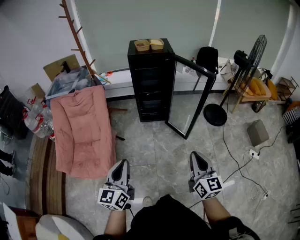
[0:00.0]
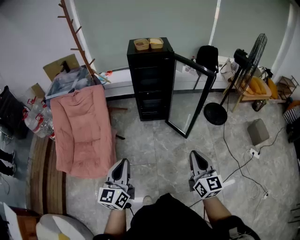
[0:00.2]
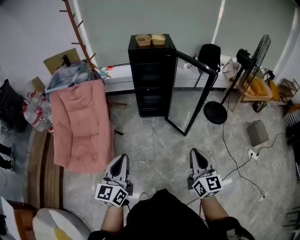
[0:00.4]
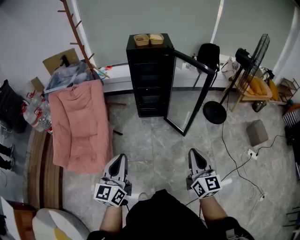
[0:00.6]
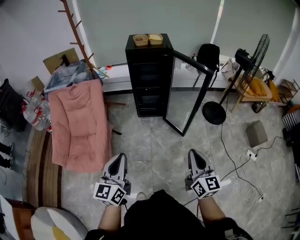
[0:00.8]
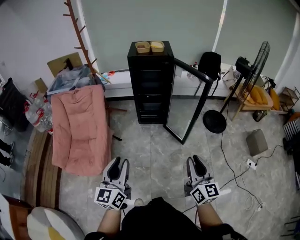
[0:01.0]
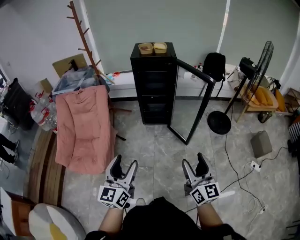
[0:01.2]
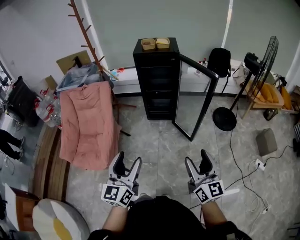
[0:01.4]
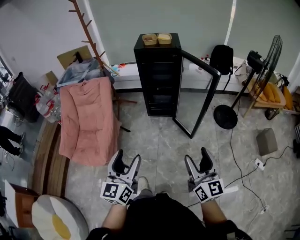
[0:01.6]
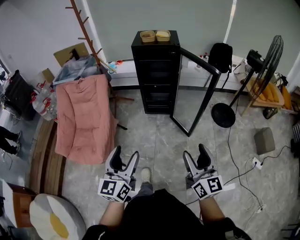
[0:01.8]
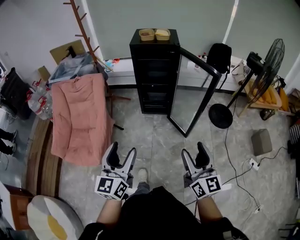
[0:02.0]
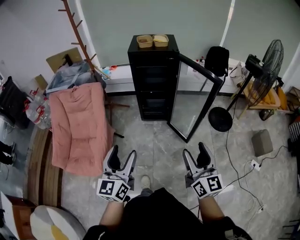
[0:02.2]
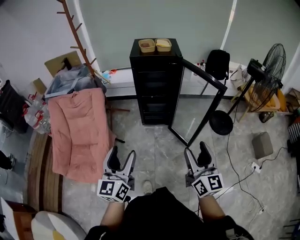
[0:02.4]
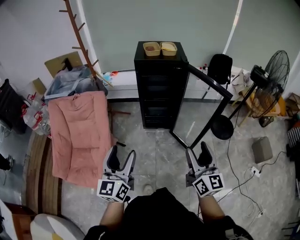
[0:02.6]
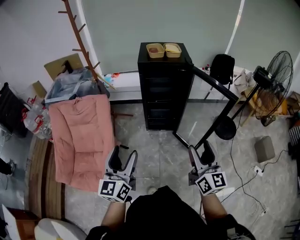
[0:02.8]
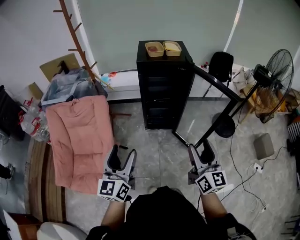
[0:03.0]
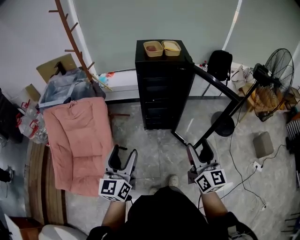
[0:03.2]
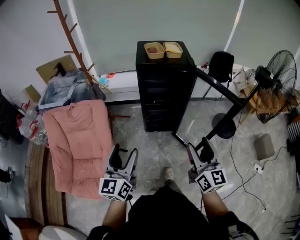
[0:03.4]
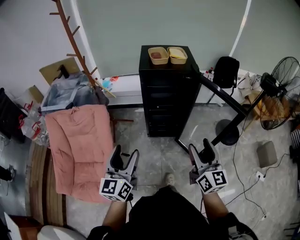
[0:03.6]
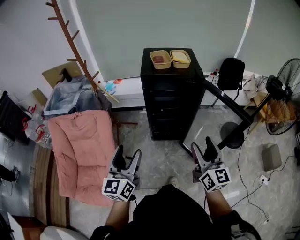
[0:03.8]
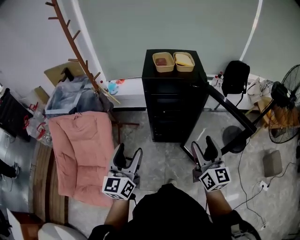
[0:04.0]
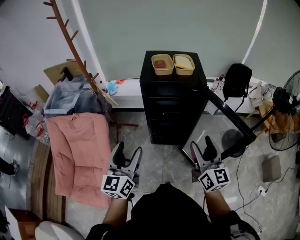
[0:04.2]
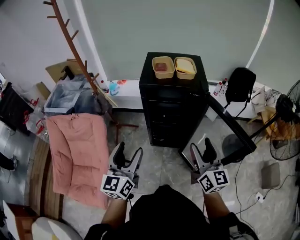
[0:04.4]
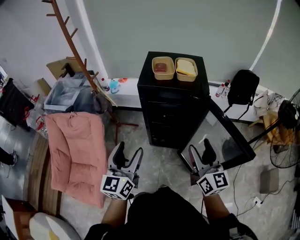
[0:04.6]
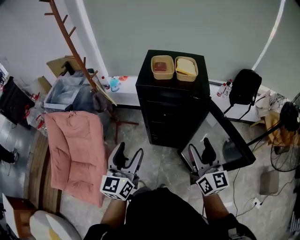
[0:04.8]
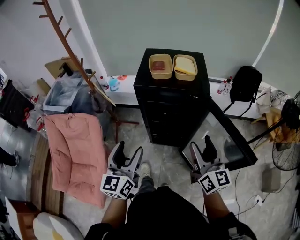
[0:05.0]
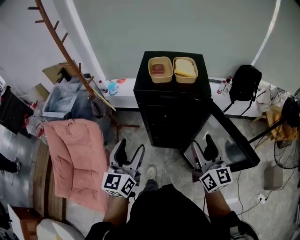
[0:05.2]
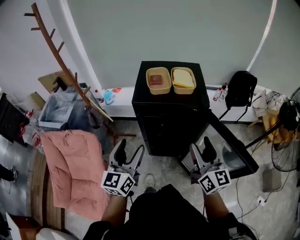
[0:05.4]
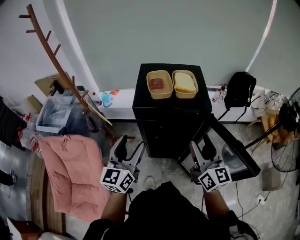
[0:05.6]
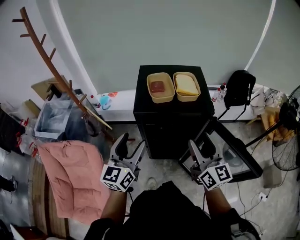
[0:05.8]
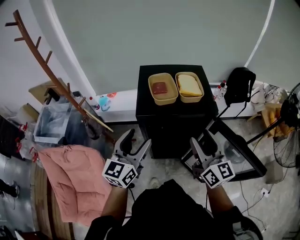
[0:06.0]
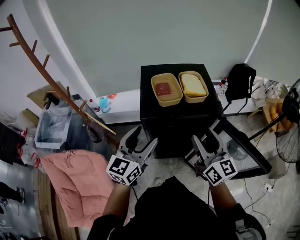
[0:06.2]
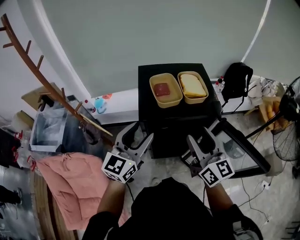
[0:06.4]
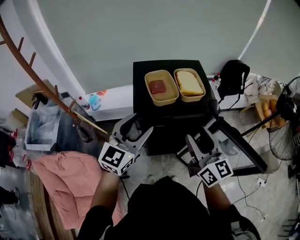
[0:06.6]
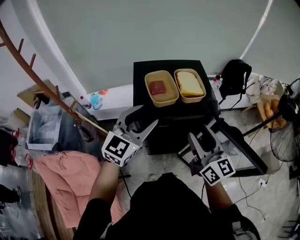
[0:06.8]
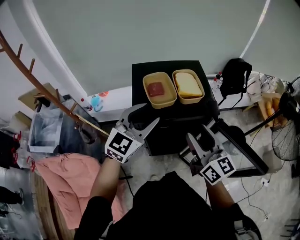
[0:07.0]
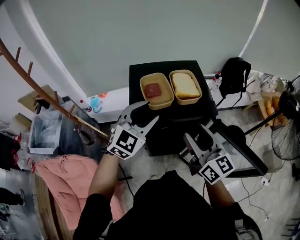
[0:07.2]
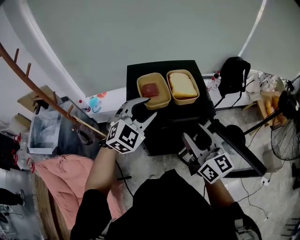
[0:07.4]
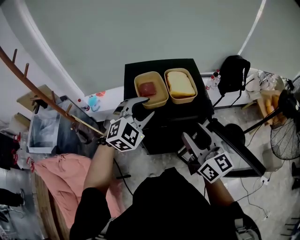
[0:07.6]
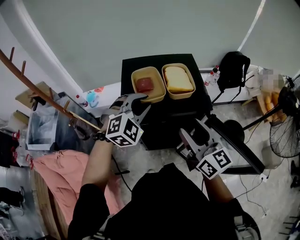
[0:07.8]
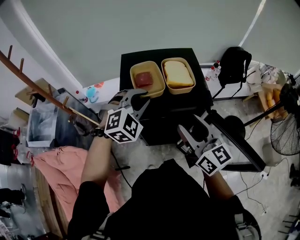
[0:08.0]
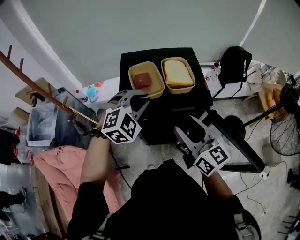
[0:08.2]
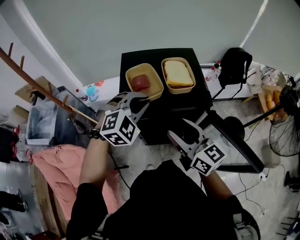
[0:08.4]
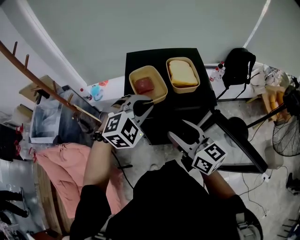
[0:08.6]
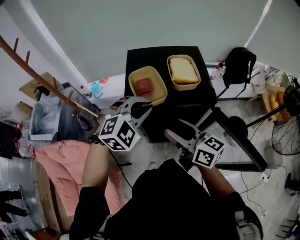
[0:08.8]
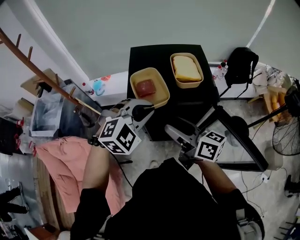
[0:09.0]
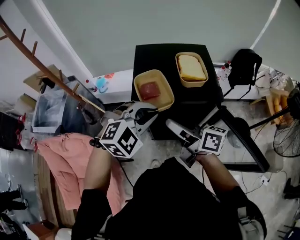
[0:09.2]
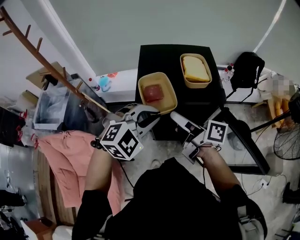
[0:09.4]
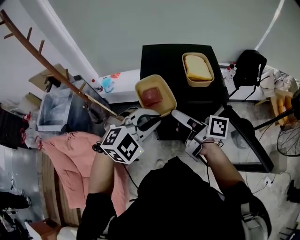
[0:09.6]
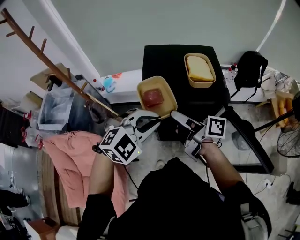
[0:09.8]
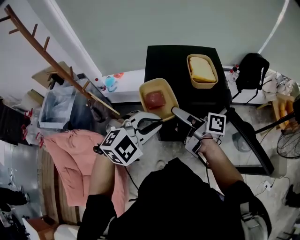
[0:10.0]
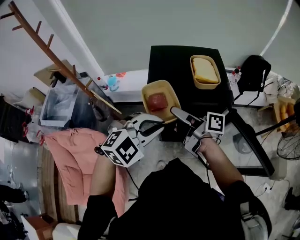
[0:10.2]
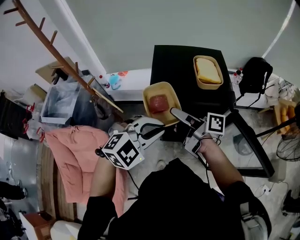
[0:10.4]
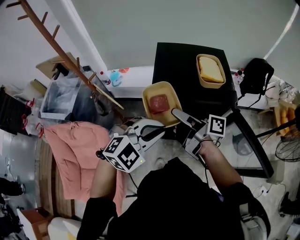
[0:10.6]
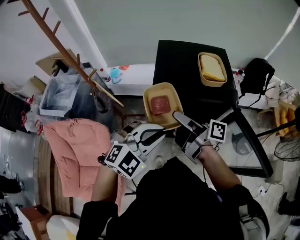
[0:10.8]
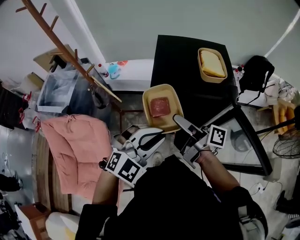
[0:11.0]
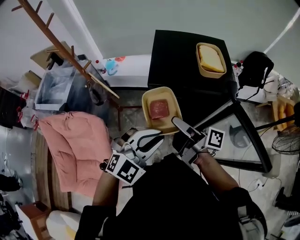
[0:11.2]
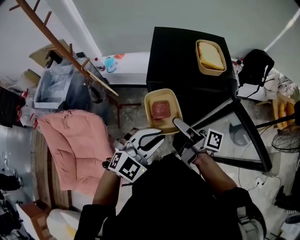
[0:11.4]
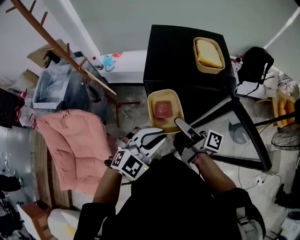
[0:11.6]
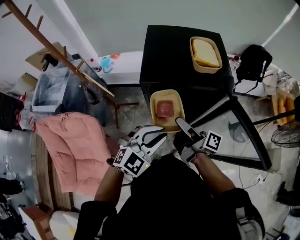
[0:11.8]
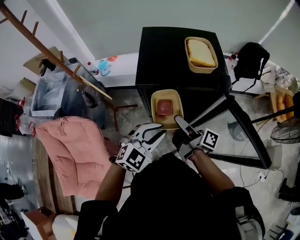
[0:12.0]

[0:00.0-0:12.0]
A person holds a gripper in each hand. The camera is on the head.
0:00.0 to 0:01.6: Both grippers move to the right, roughly 10 cm. The left gripper opens its fingers. The right gripper opens.
0:01.6 to 0:03.0: Both grippers travel together forward and to the left, approximately 25 cm.
0:03.0 to 0:04.4: Both grippers move forward, about 20 cm.
0:04.4 to 0:06.0: The grippers both shift forward by some 20 cm.
0:06.0 to 0:07.6: The left gripper moves forward and to the right, approximately 15 cm, rolls clockwise, seen from behind, by approximately 50 degrees, and closes up.
0:07.6 to 0:09.0: The left gripper is displaced backward by approximately 10 cm, and closes up. Meanwhile the right gripper travels to the left by approximately 10 cm, and turns by roughly 30 degrees.
0:09.0 to 0:10.4: The right gripper goes roughly 5 cm to the left, and swivels approximately 40 degrees, while the left gripper moves backward, some 10 cm.
0:10.4 to 0:12.0: The left gripper is displaced downward by some 10 cm; the right gripper goes some 10 cm downward and to the right.

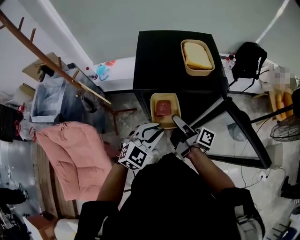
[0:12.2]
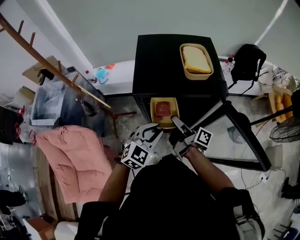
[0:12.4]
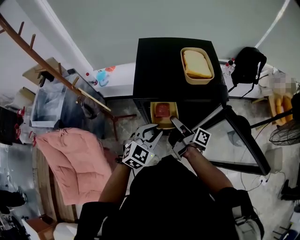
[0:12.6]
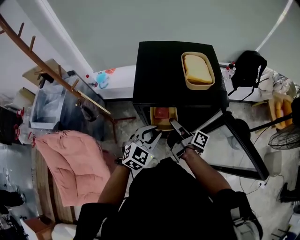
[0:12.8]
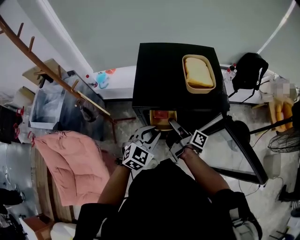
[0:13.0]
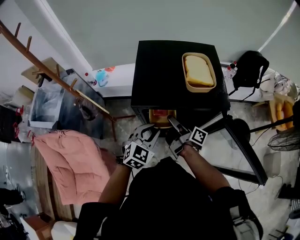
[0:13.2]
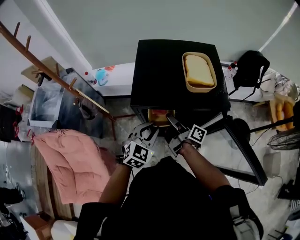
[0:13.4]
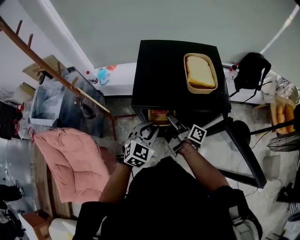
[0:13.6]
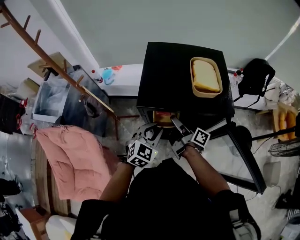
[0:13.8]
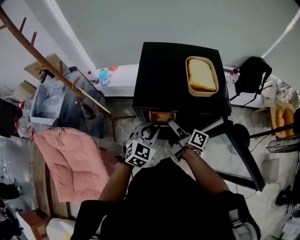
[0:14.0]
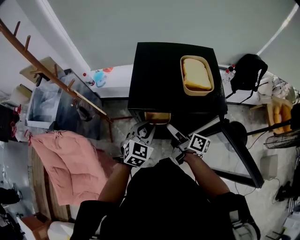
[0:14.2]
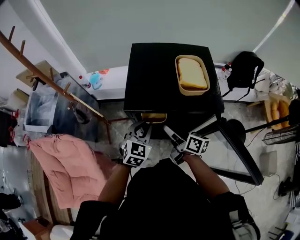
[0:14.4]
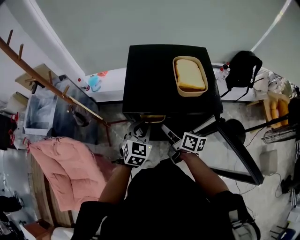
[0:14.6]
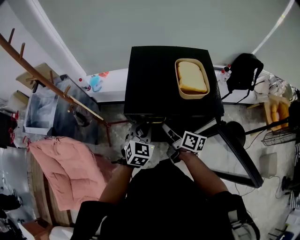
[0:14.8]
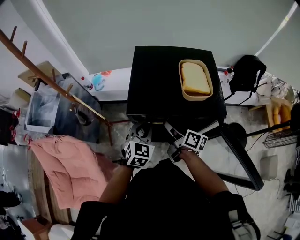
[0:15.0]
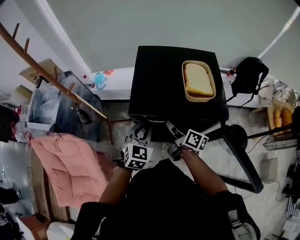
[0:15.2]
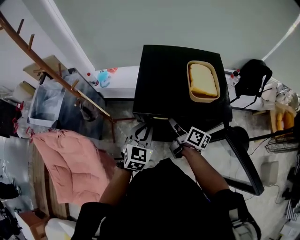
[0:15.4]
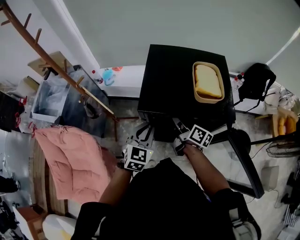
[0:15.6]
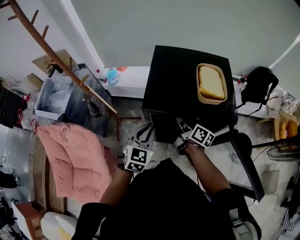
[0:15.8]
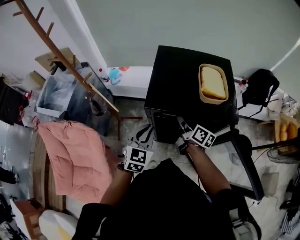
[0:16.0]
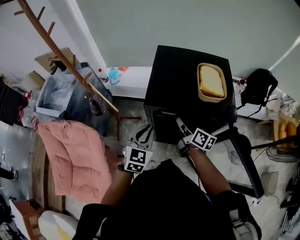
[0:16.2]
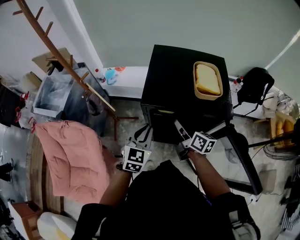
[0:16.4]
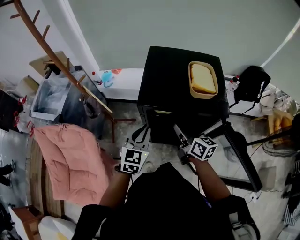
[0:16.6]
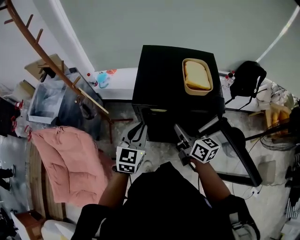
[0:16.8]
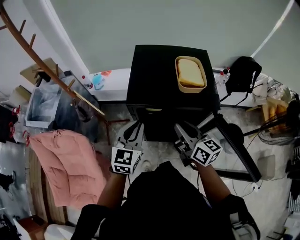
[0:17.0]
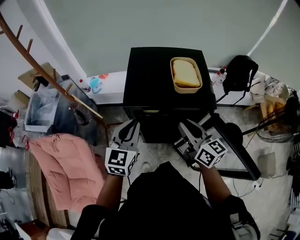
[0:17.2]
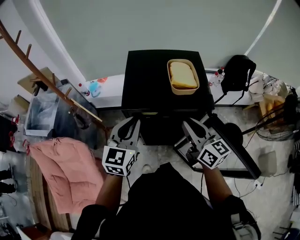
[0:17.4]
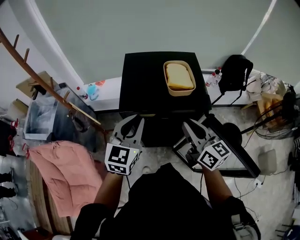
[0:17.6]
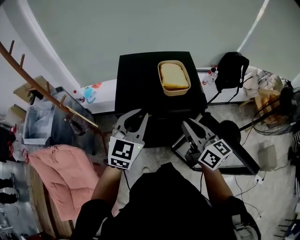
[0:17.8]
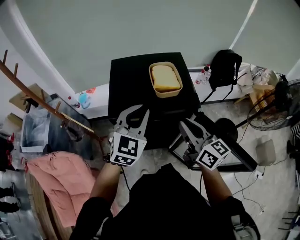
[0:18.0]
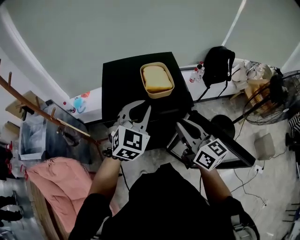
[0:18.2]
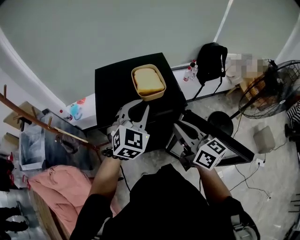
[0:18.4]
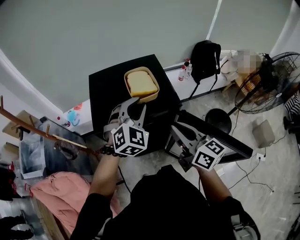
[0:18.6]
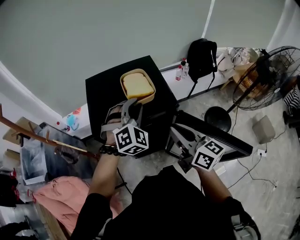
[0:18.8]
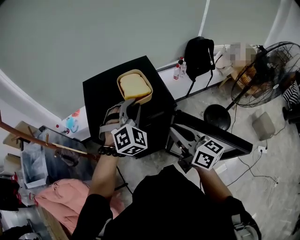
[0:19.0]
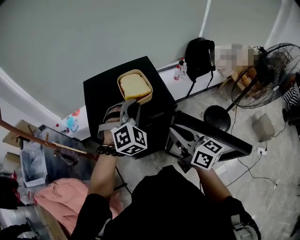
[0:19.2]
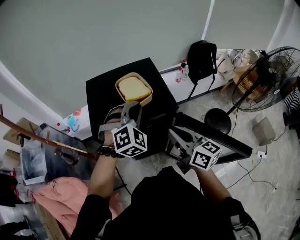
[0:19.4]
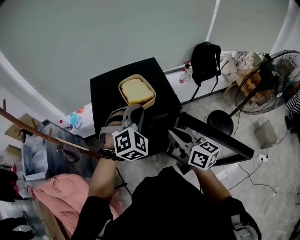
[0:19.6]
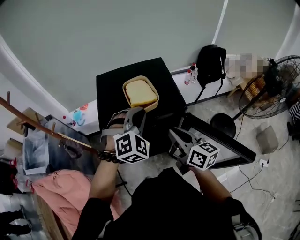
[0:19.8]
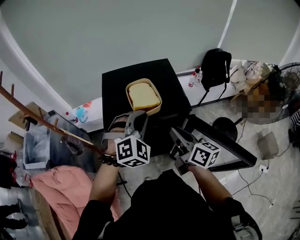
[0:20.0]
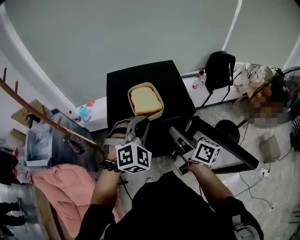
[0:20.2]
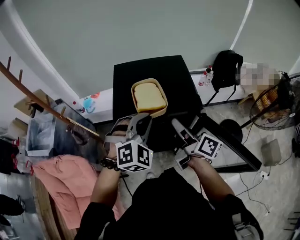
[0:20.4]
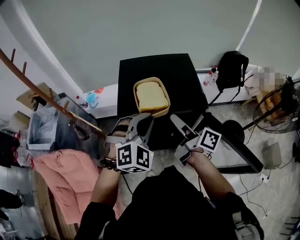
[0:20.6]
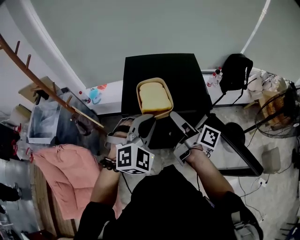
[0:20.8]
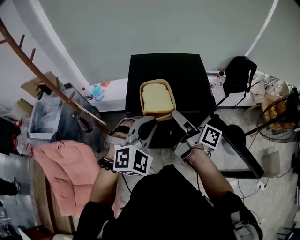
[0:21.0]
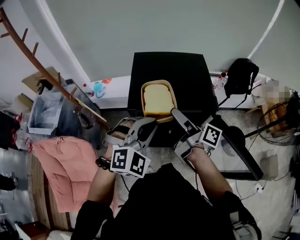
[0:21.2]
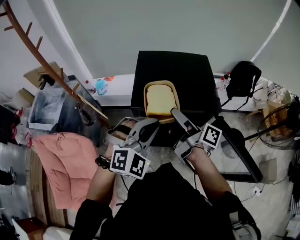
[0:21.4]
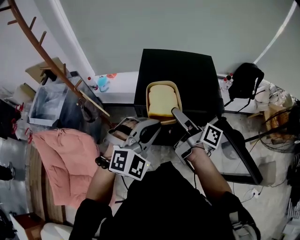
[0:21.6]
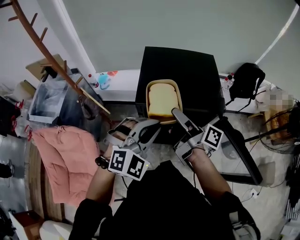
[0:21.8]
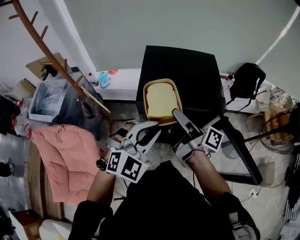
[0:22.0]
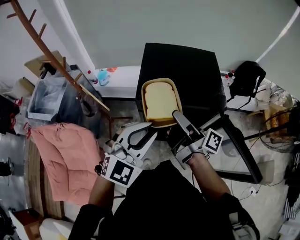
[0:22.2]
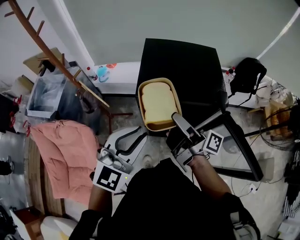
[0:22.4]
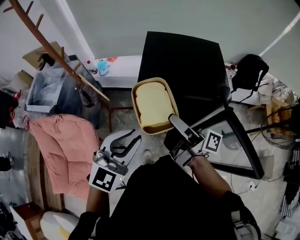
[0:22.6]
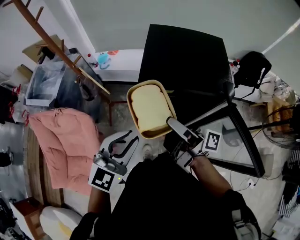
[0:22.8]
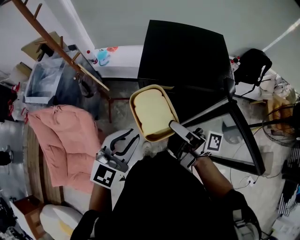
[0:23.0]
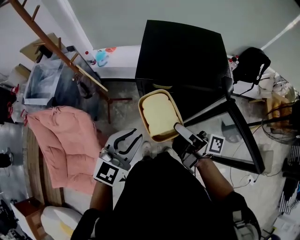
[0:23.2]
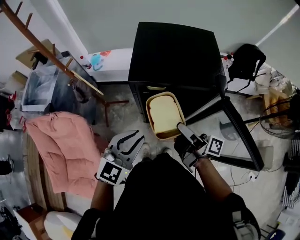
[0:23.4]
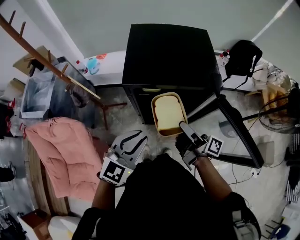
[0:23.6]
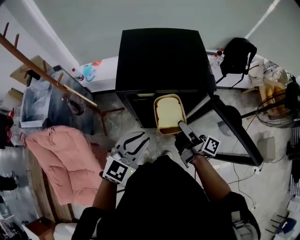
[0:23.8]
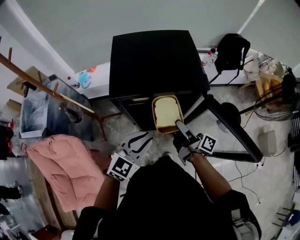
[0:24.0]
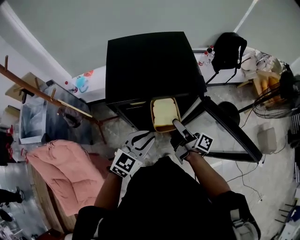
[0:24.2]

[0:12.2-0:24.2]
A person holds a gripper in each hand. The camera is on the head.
0:12.2 to 0:13.8: The grippers both shift forward by some 10 cm.
0:13.8 to 0:15.2: The right gripper rotates some 20 degrees, and closes.
0:15.2 to 0:16.6: The left gripper ends up approximately 5 cm from where it was, while the right gripper shifts by about 5 cm, and changes its angle by about 30 degrees.
0:16.6 to 0:18.2: The left gripper heads to the right, upward and forward, covering approximately 20 cm, and rotates roughly 30 degrees. The right gripper travels upward and to the right by about 15 cm, and changes its angle by approximately 20 degrees.
0:18.2 to 0:19.8: The left gripper swivels about 30 degrees.
0:19.8 to 0:21.2: The right gripper travels to the left and forward by roughly 10 cm, twists roughly 40 degrees clockwise, seen from behind, and opens, while the left gripper shifts about 10 cm backward and to the left.
0:21.2 to 0:22.6: The right gripper moves backward and to the left, roughly 10 cm. Meanwhile the left gripper shifts roughly 15 cm to the left and backward, and rotates about 30 degrees.
0:22.6 to 0:24.2: Both grippers travel together downward, some 15 cm. The left gripper rotates roughly 20 degrees. The right gripper turns by roughly 30 degrees.
